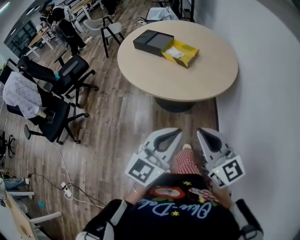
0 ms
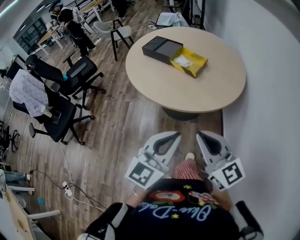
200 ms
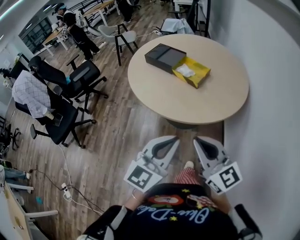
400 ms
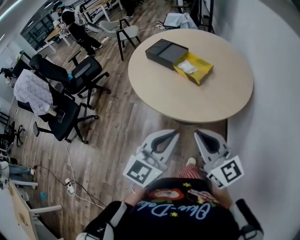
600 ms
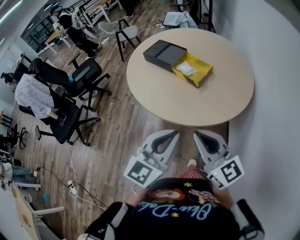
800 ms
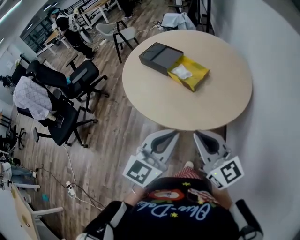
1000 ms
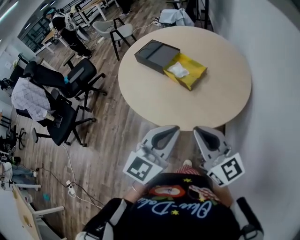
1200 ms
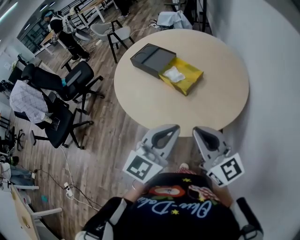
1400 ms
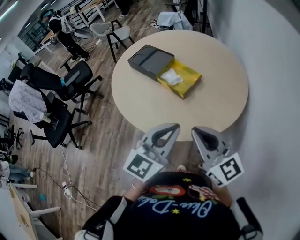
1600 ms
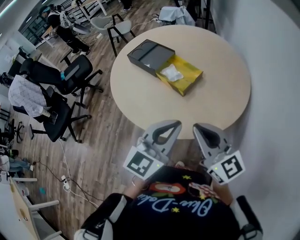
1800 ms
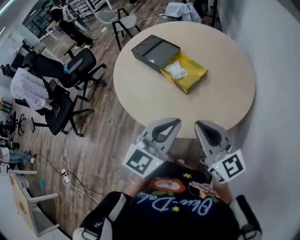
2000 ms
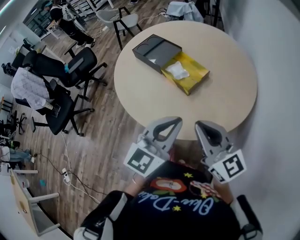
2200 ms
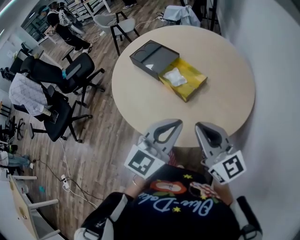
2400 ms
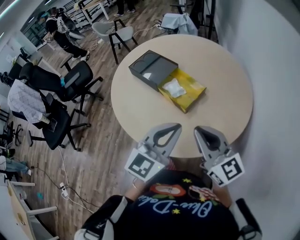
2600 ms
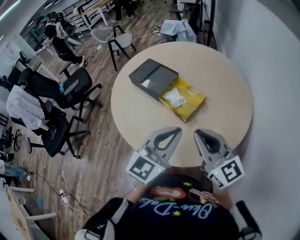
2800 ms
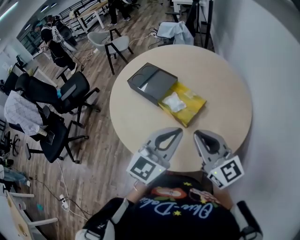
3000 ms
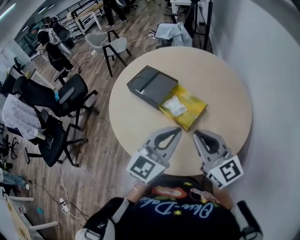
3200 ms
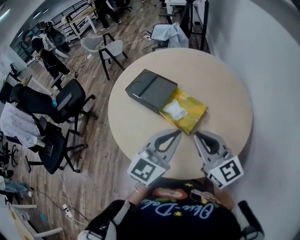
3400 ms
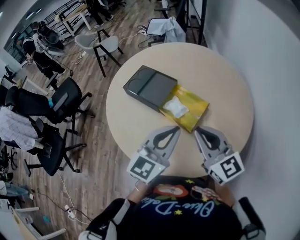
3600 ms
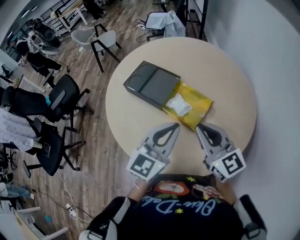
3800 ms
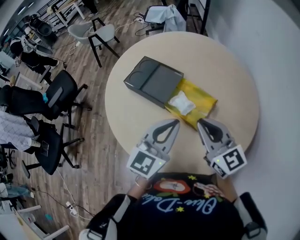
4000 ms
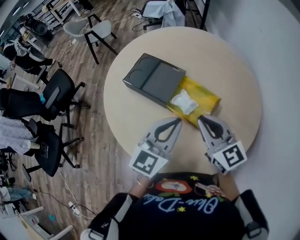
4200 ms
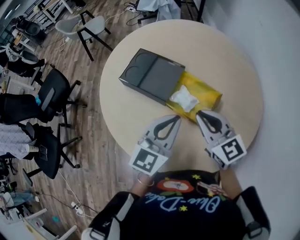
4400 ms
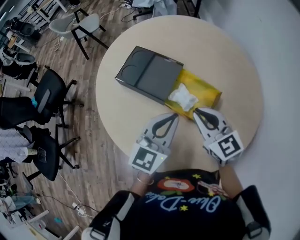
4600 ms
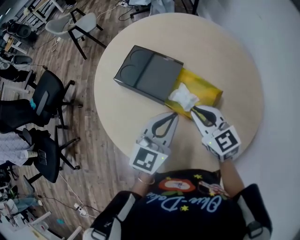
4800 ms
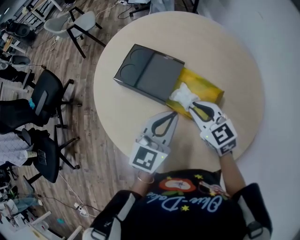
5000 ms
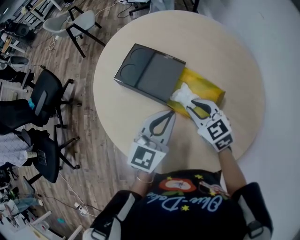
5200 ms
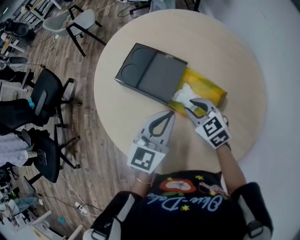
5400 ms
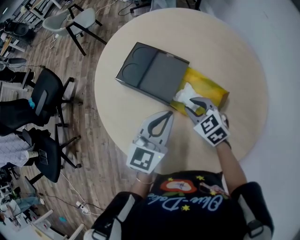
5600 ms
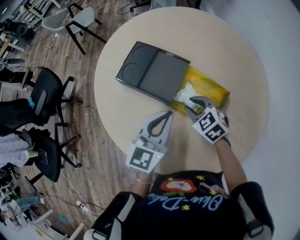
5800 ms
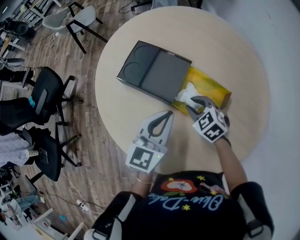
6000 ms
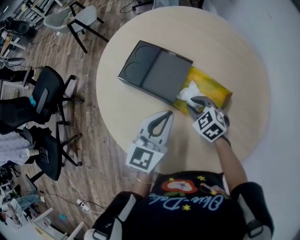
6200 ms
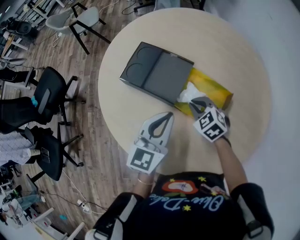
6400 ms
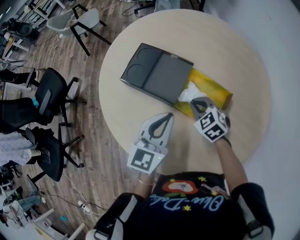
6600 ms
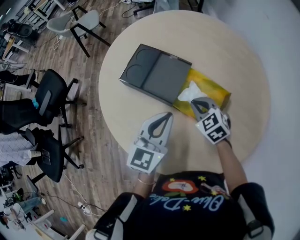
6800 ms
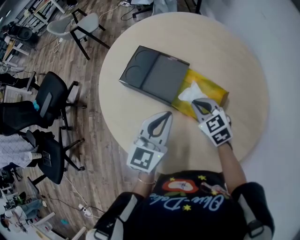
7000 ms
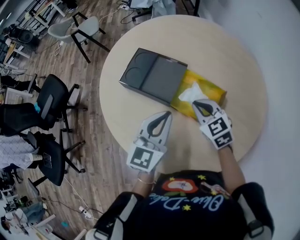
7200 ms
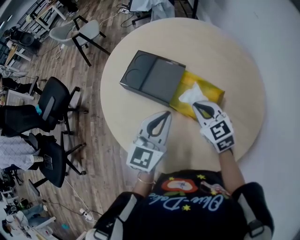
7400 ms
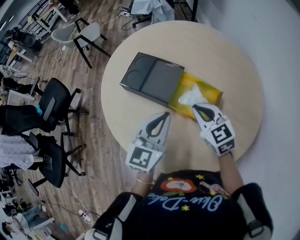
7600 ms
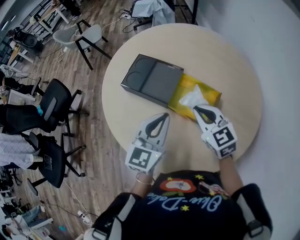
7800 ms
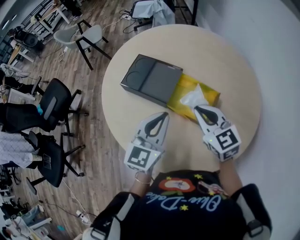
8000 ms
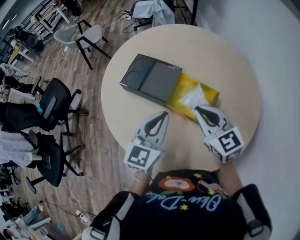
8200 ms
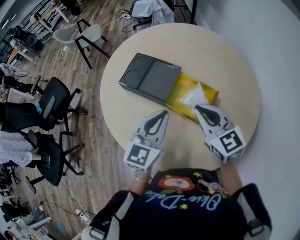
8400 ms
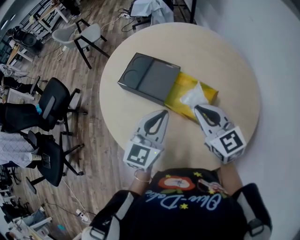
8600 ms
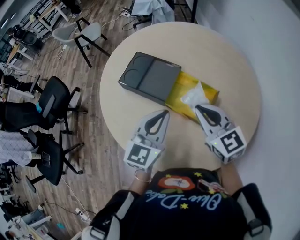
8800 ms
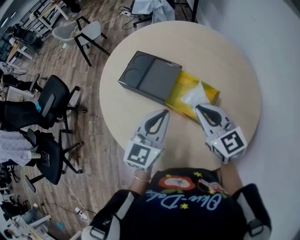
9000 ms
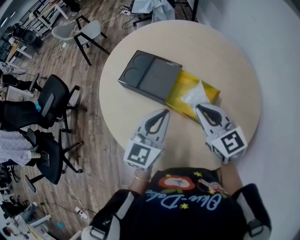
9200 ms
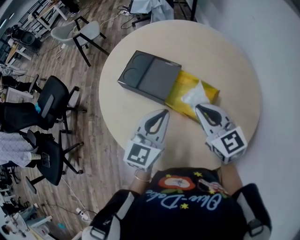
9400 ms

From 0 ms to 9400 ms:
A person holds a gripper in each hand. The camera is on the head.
From 0 ms to 1600 ms: Both grippers move forward and to the right, roughly 25 cm.
From 1600 ms to 3200 ms: Both grippers travel together forward, approximately 15 cm.
From 3200 ms to 4800 ms: The left gripper moves forward, to the left and downward, roughly 20 cm; the right gripper goes about 20 cm forward, downward and to the left, and turns by approximately 30 degrees.
From 4800 ms to 6200 ms: The left gripper moves roughly 5 cm. Meanwhile the right gripper is displaced downward by about 15 cm, and rotates approximately 30 degrees.
From 6200 ms to 7800 ms: The right gripper goes about 15 cm upward, and changes its angle by about 30 degrees. The left gripper moves some 5 cm.
From 7800 ms to 9400 ms: The right gripper ends up approximately 5 cm from where it was.

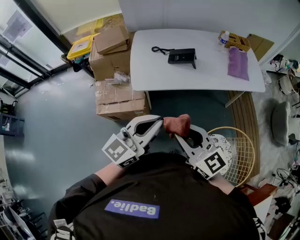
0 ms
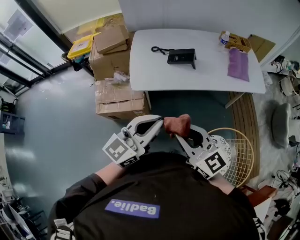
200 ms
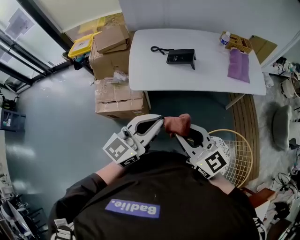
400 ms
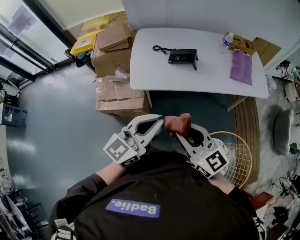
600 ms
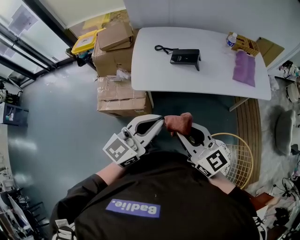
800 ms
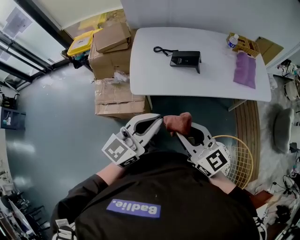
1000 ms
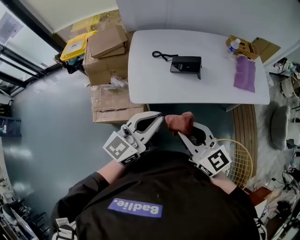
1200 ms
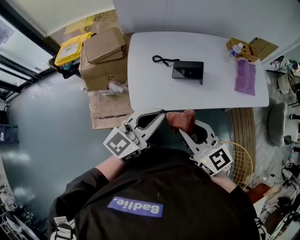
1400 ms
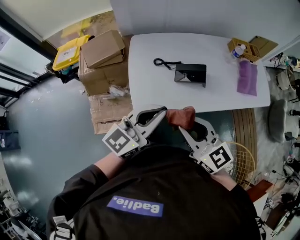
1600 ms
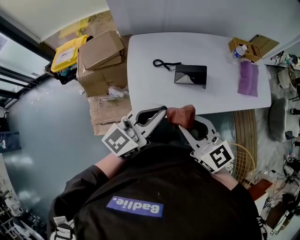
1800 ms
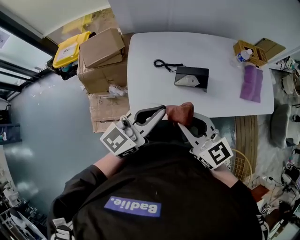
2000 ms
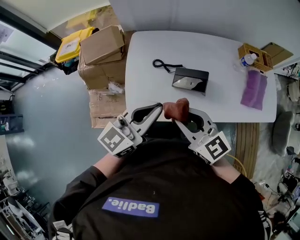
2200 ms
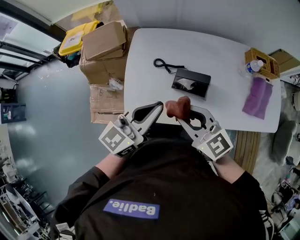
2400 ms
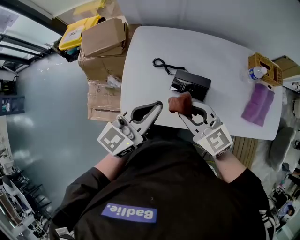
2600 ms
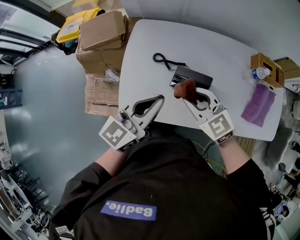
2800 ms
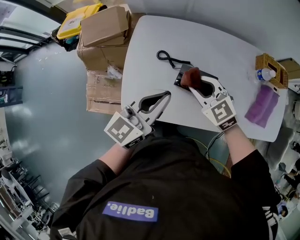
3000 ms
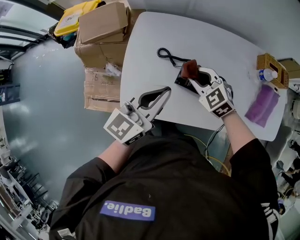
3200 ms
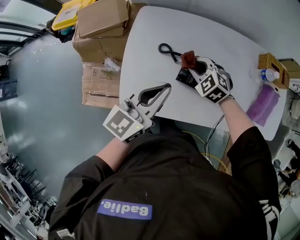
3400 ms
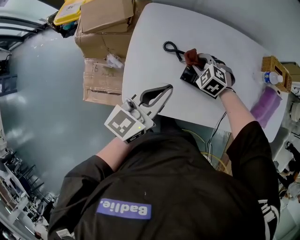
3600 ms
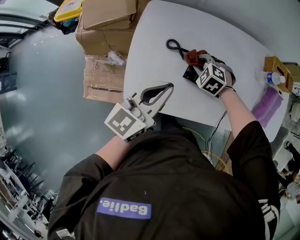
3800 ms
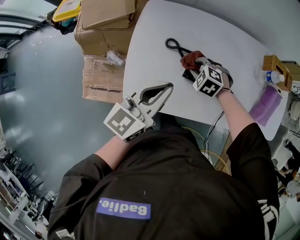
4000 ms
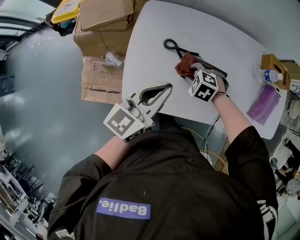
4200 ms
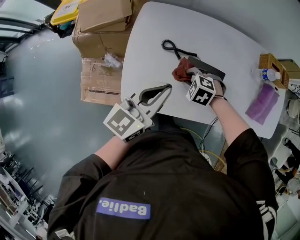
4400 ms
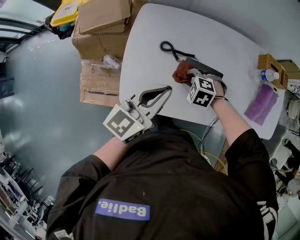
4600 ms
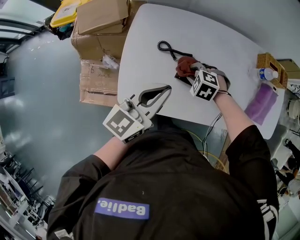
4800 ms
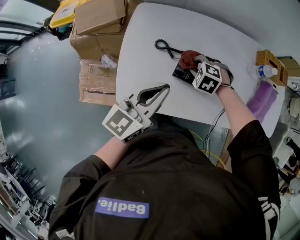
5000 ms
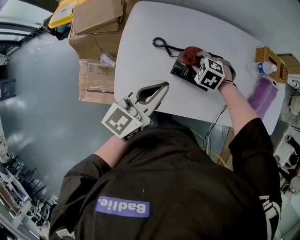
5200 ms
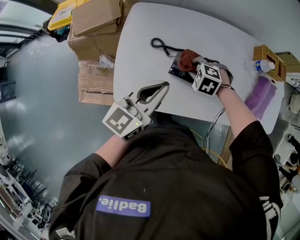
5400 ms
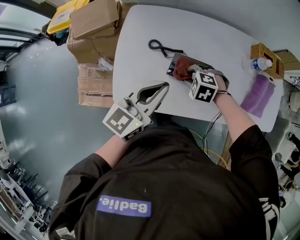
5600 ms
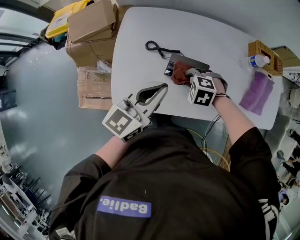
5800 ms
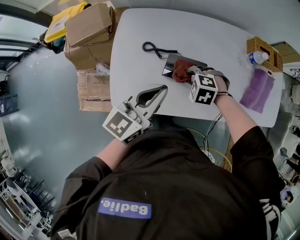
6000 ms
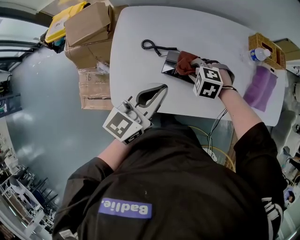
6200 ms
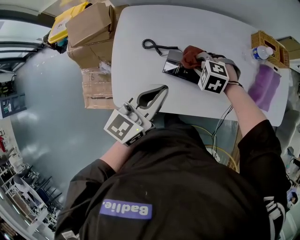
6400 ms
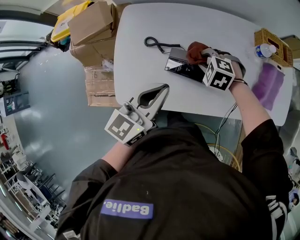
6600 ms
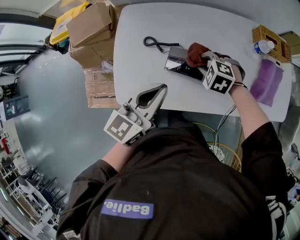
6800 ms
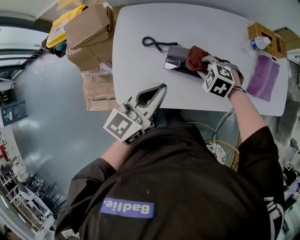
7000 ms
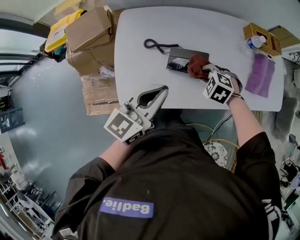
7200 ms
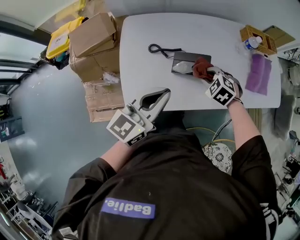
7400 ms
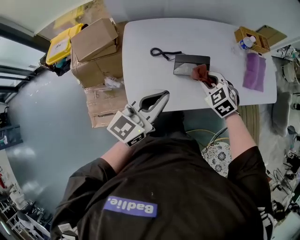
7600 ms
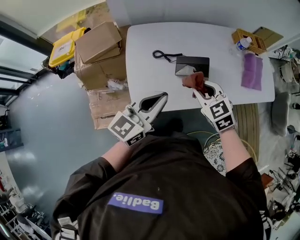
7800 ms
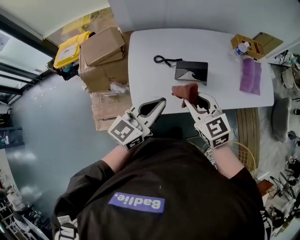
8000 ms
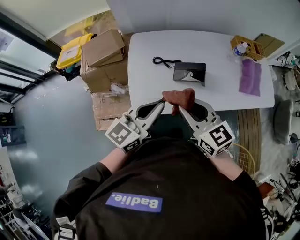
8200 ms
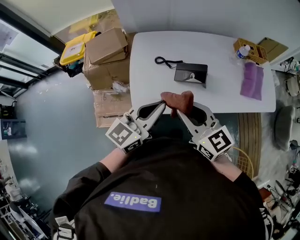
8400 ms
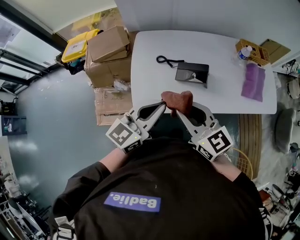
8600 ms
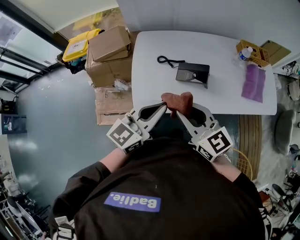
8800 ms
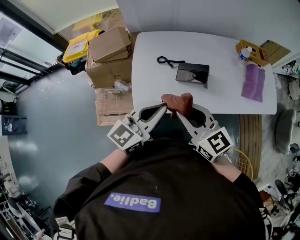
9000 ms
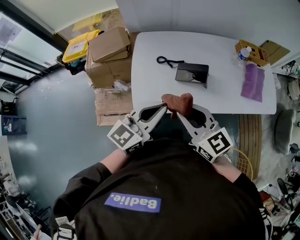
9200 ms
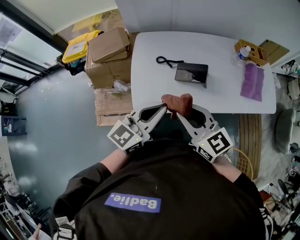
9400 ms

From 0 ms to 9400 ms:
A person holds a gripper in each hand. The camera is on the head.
From 0 ms to 1600 ms: Both grippers move forward, roughly 25 cm.
From 1600 ms to 3200 ms: The left gripper is displaced forward, downward and to the right by about 20 cm, and turns by approximately 20 degrees; the right gripper moves forward and downward, about 35 cm, and tips its fingers downward by some 30 degrees.
From 3200 ms to 4800 ms: The right gripper heads downward, covering approximately 10 cm, and changes its angle by roughly 30 degrees.
From 4800 ms to 6200 ms: The two grippers go about 5 cm to the right.
From 6200 ms to 7800 ms: The right gripper travels upward by some 15 cm, and angles its fingers upward, by roughly 30 degrees. Meanwhile the left gripper shifts by approximately 15 cm.
From 7800 ms to 9400 ms: The left gripper goes roughly 5 cm backward, while the right gripper heads backward and upward, covering some 15 cm, and rotates approximately 40 degrees.

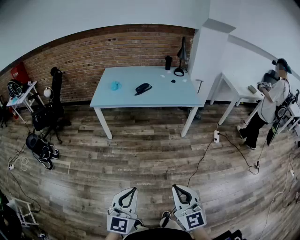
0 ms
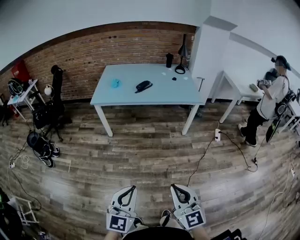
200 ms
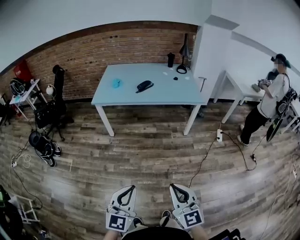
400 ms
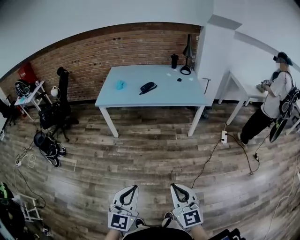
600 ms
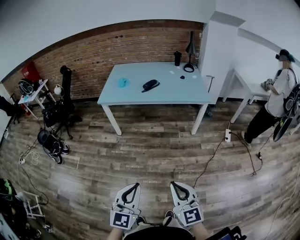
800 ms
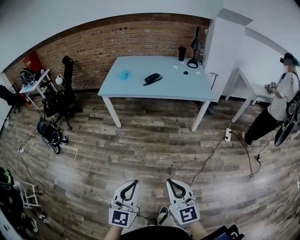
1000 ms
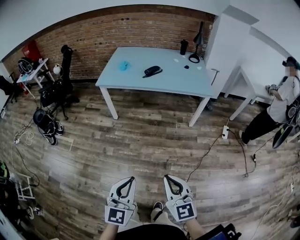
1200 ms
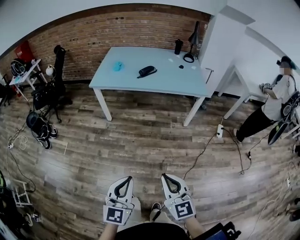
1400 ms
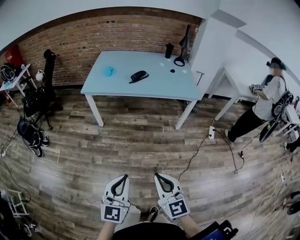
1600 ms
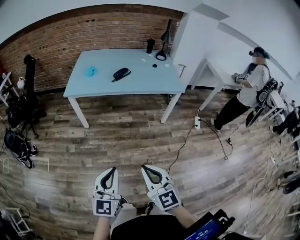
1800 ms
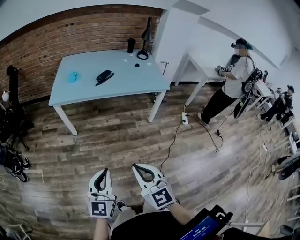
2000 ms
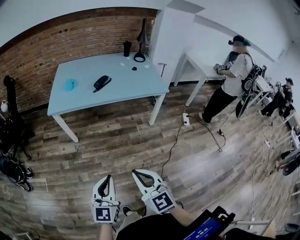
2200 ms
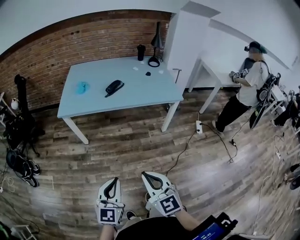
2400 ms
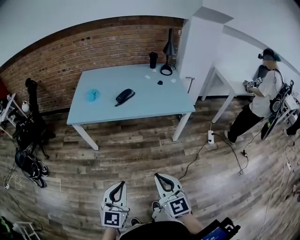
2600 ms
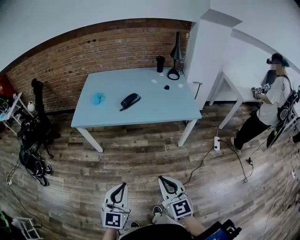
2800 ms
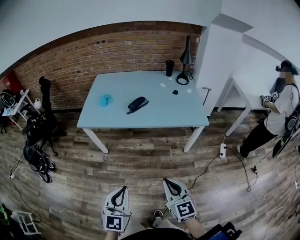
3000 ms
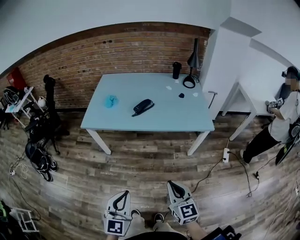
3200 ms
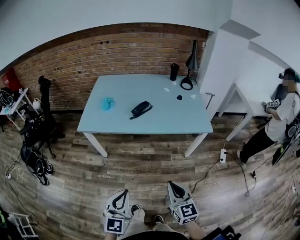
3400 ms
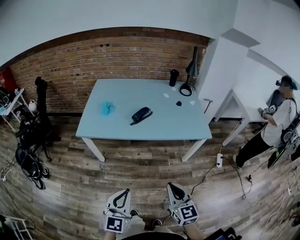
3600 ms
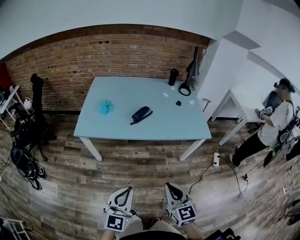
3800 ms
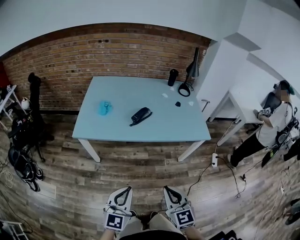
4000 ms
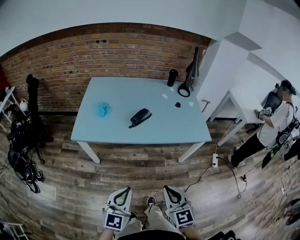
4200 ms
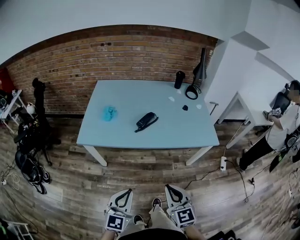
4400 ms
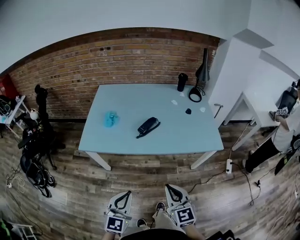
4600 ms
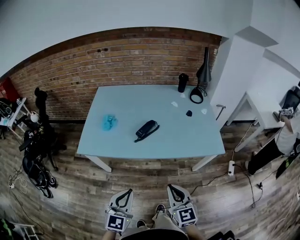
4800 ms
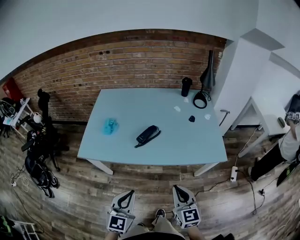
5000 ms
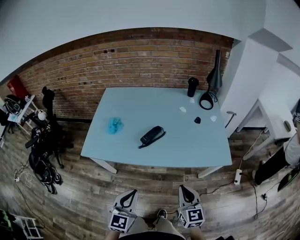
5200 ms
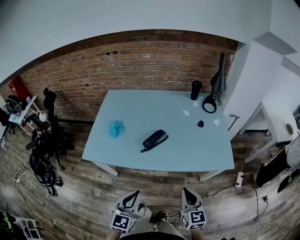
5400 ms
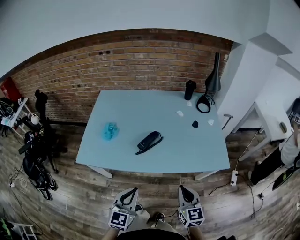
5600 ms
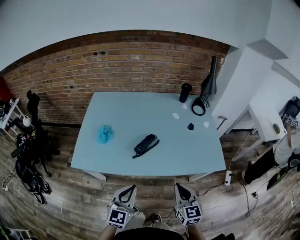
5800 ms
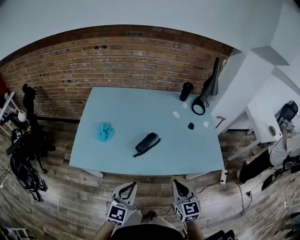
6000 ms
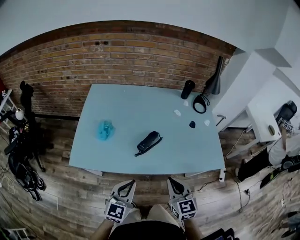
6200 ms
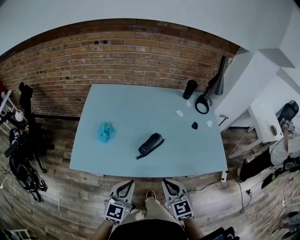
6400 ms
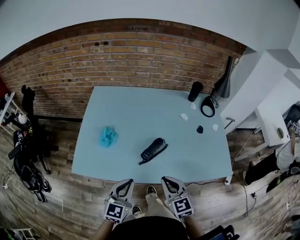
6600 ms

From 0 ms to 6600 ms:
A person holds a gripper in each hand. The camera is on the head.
From 0 ms to 1600 ms: Both grippers travel together forward, approximately 10 cm.
From 1600 ms to 3200 ms: The grippers both shift forward by approximately 25 cm.
From 3200 ms to 5000 ms: Both grippers move forward, some 25 cm.
From 5000 ms to 6600 ms: Both grippers move forward and to the left, some 25 cm.
